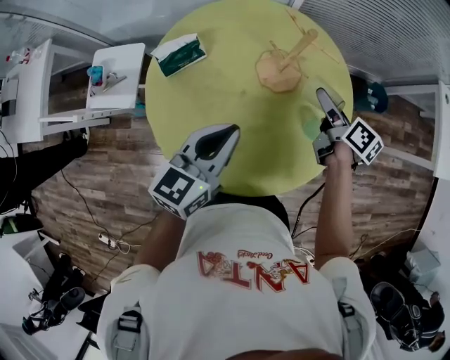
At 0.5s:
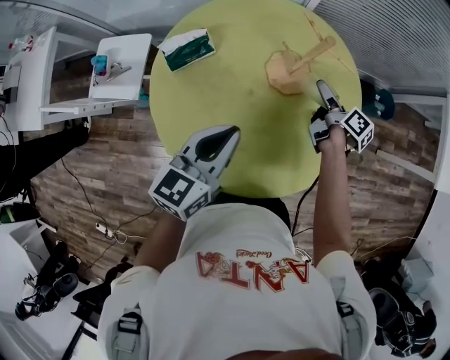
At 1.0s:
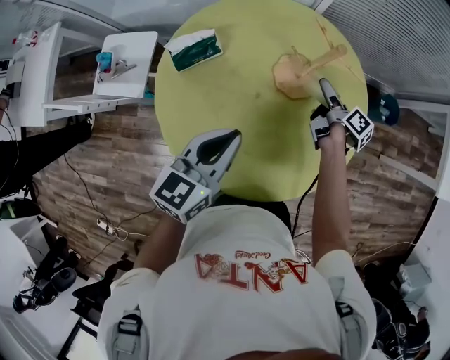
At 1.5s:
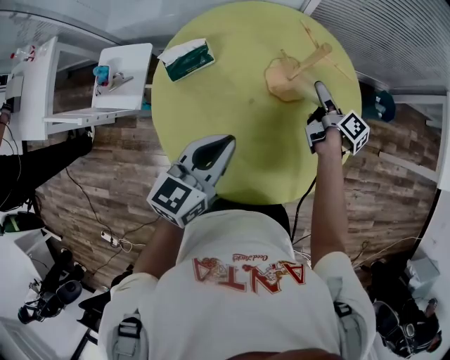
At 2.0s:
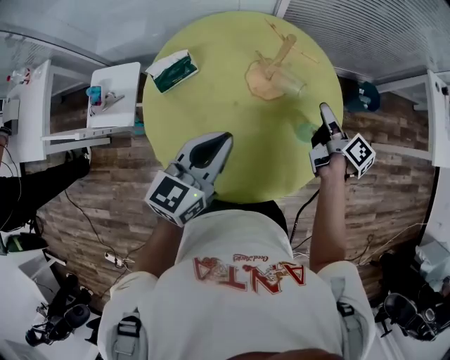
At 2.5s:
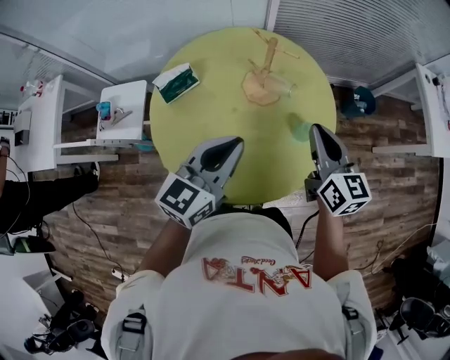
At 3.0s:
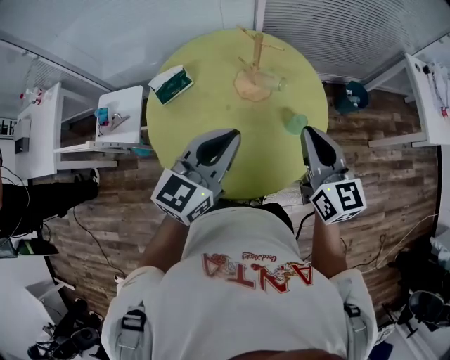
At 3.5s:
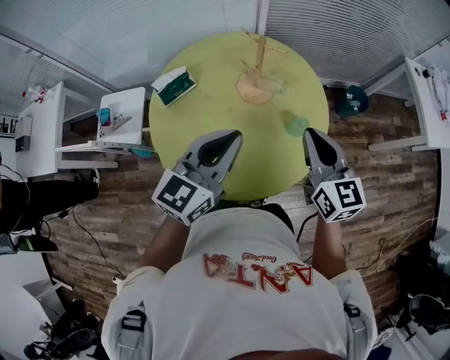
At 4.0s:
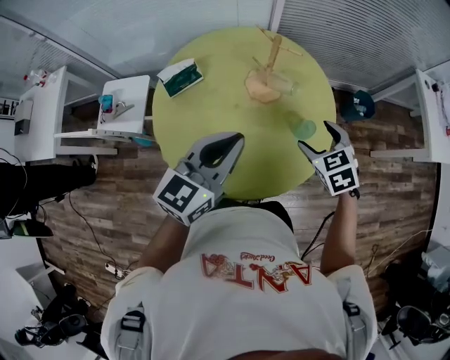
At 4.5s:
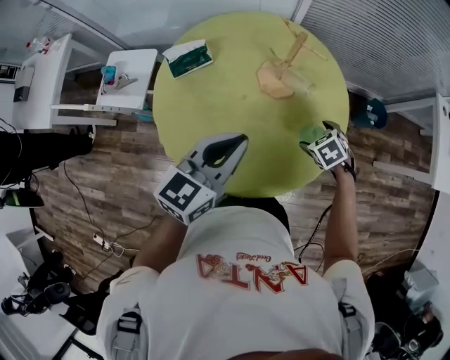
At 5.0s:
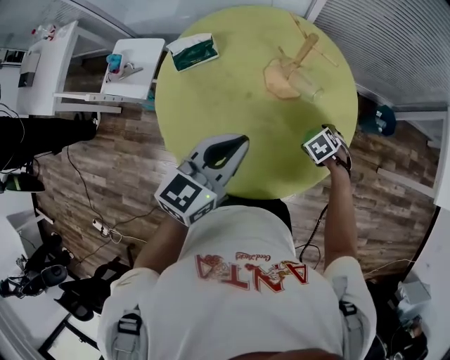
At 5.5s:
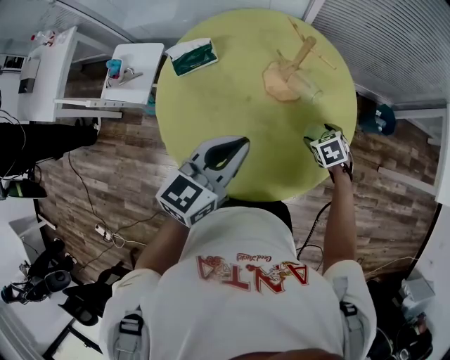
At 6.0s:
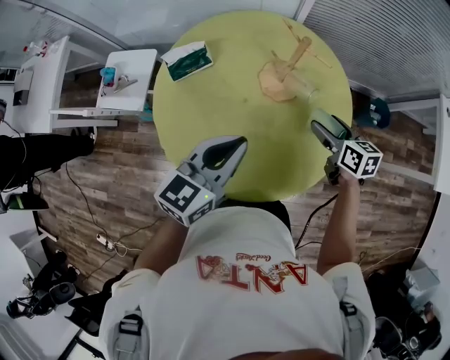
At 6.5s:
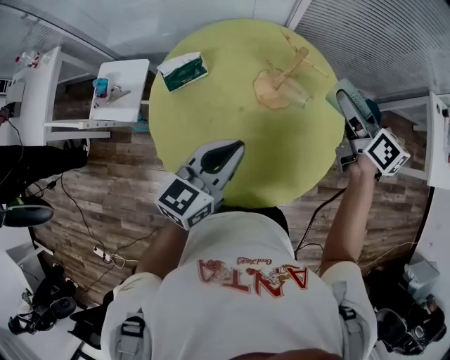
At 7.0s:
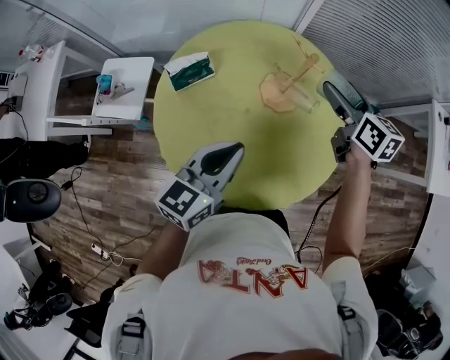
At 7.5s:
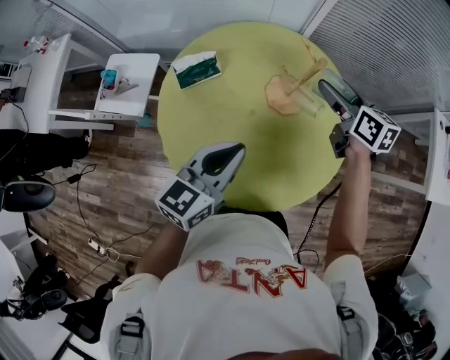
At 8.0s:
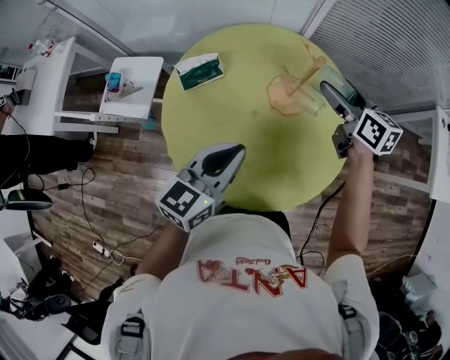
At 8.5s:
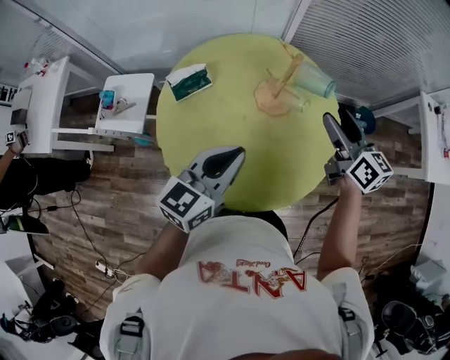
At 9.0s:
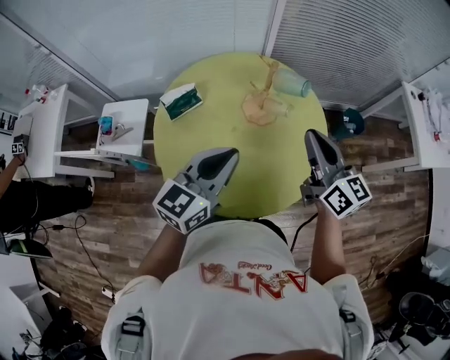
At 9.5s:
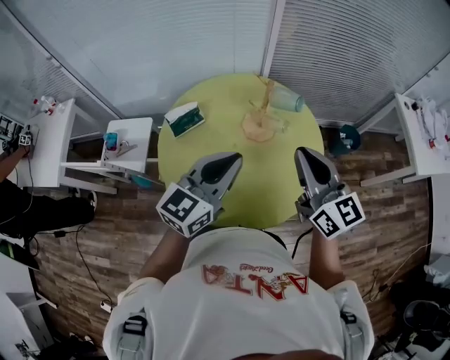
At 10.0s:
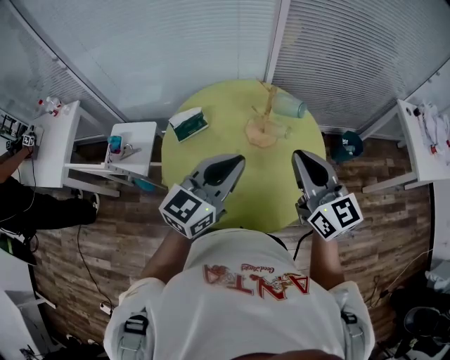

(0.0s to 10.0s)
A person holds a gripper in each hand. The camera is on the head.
0.0s - 2.0s: The right gripper goes downward and returns, approximately 10 cm each way.
2.0s - 4.0s: The left gripper goes roughly 5 cm upward. Meanwhile the right gripper heads backward, covering some 10 cm, travels upward and back again, about 20 cm each way, twists roughly 80 degrees counterclockwise, seen from behind, and closes, then opens again.
4.0s - 6.0s: The left gripper is displaced downward by approximately 5 cm, while the right gripper reaches about 25 cm downward, then returns, and swivels some 40 degrees.
6.0s - 8.0s: The right gripper heads upward, forward and to the left, covering about 20 cm.
8.0s - 10.0s: The right gripper is displaced backward and upward by some 25 cm, changes its angle by about 30 degrees, and closes. Meanwhile the left gripper heads upward, covering roughly 10 cm.

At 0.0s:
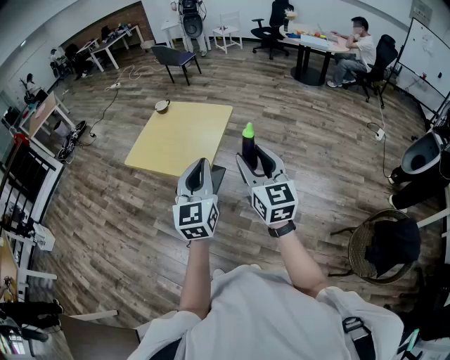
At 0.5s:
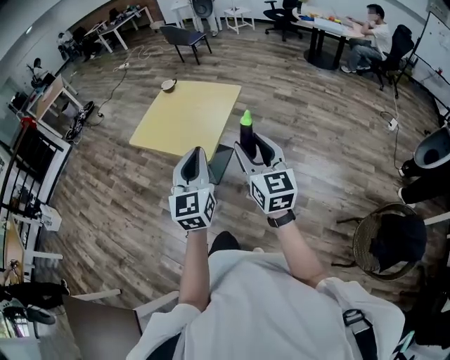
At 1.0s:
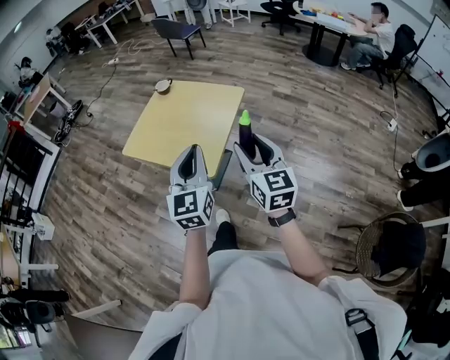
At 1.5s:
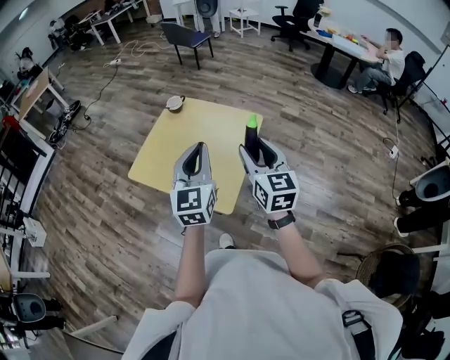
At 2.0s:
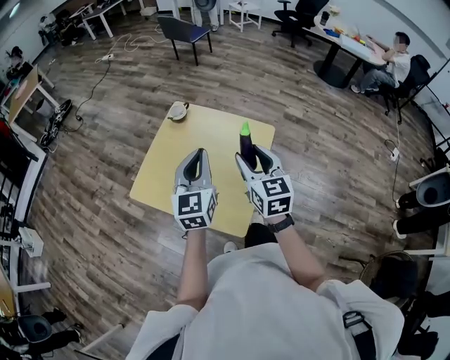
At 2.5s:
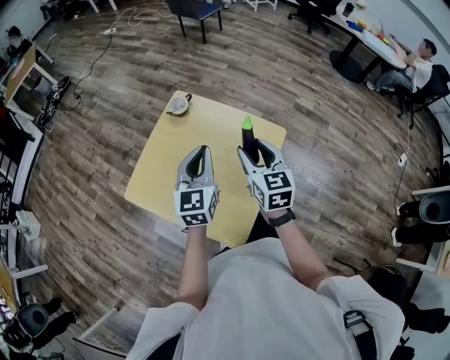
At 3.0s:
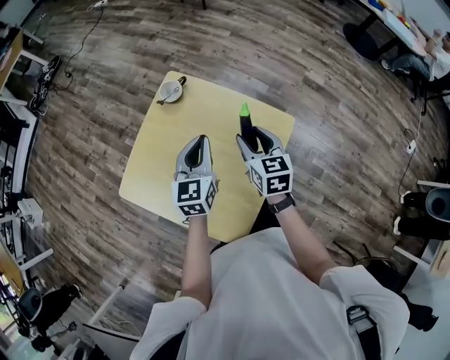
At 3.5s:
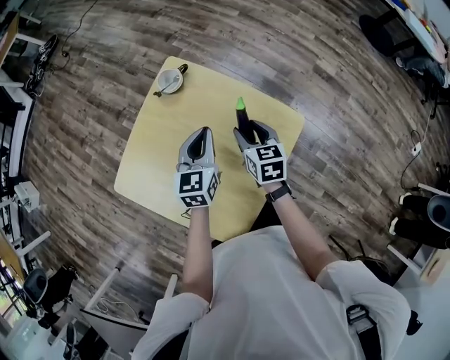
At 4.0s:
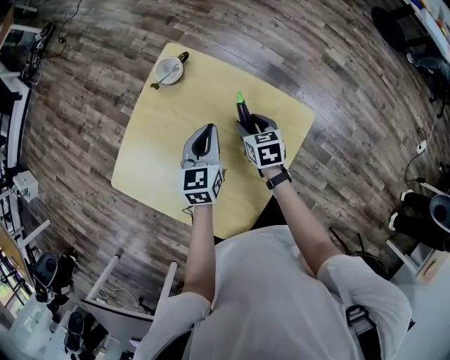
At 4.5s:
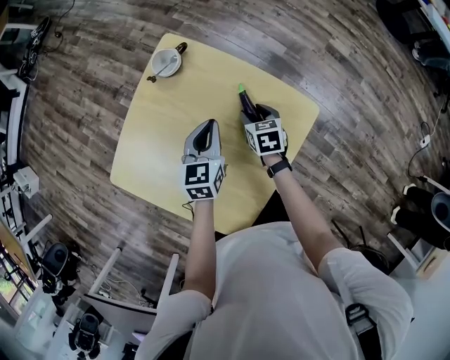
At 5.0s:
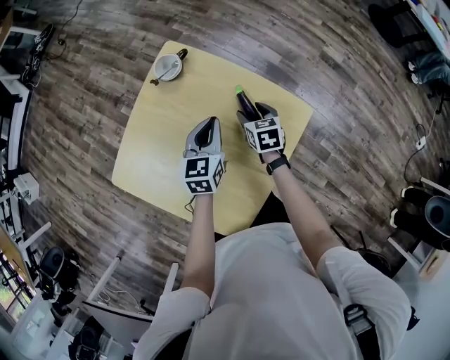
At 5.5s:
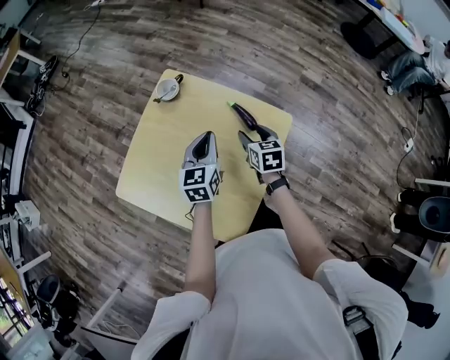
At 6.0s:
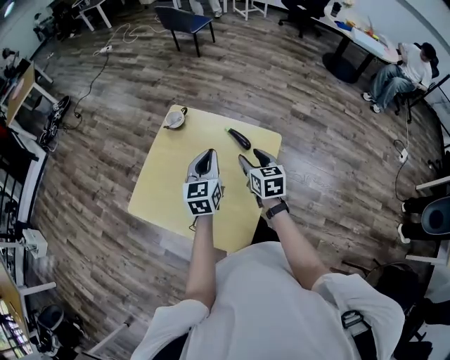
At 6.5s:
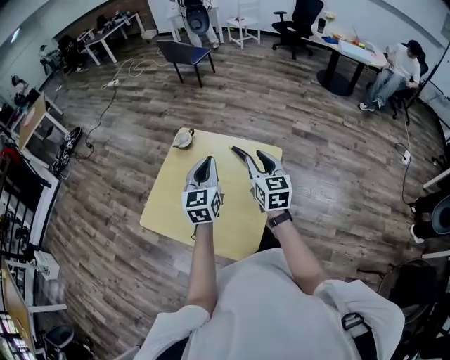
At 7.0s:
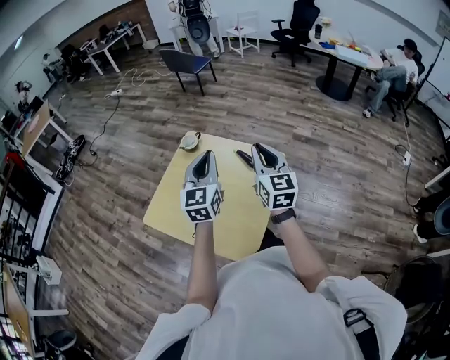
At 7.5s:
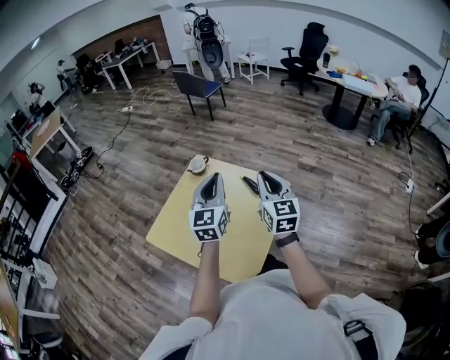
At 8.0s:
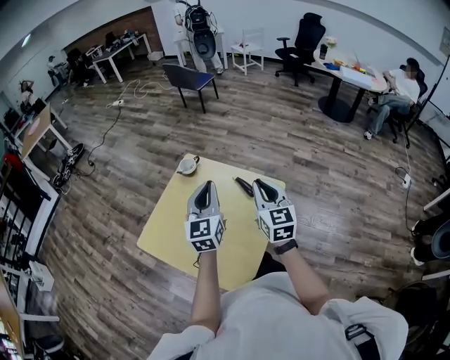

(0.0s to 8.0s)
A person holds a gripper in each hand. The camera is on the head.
0.0s - 2.0s: The two grippers travel together, forward, some 50 cm.
2.0s - 4.0s: The grippers both shift downward and forward by about 40 cm. The right gripper angles its fingers downward, by approximately 30 degrees. Meanwhile the left gripper changes its angle by about 30 degrees.
4.0s - 6.0s: Both grippers move upward and backward, roughly 20 cm. The right gripper swivels about 20 degrees.
6.0s - 8.0s: The two grippers go approximately 15 cm upward. The right gripper rotates about 30 degrees, and closes its fingers.

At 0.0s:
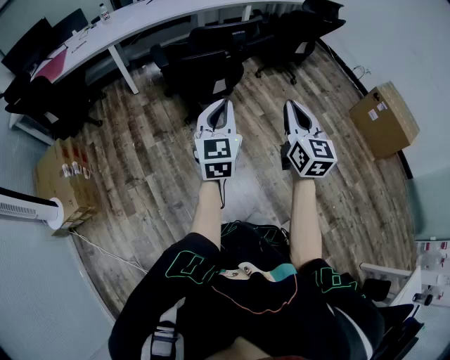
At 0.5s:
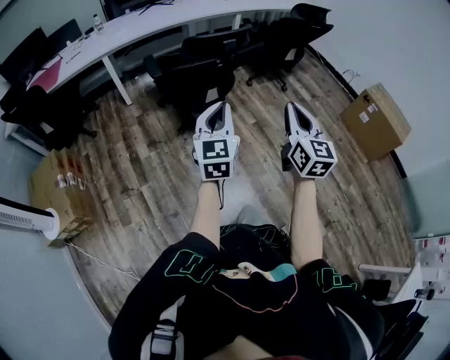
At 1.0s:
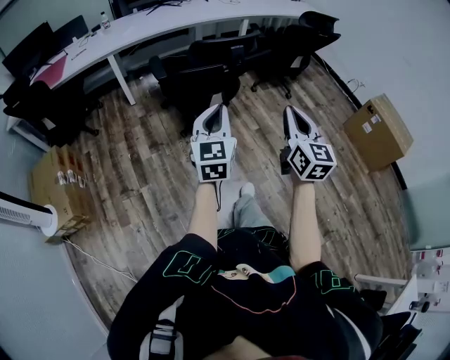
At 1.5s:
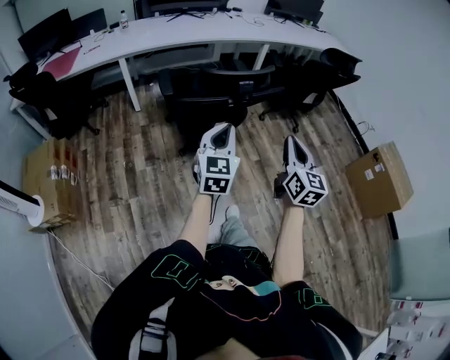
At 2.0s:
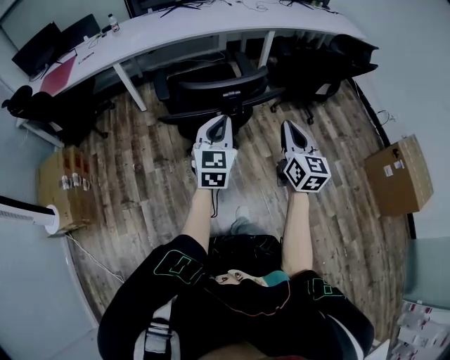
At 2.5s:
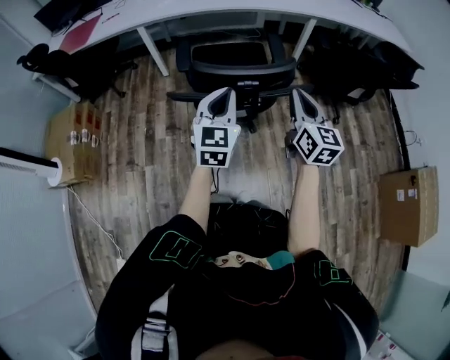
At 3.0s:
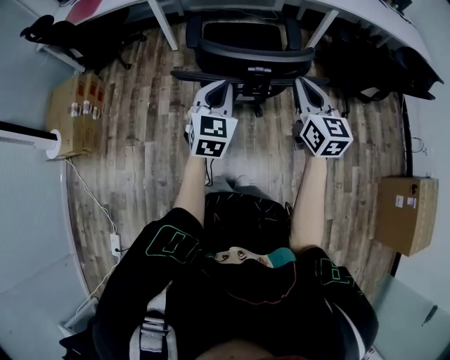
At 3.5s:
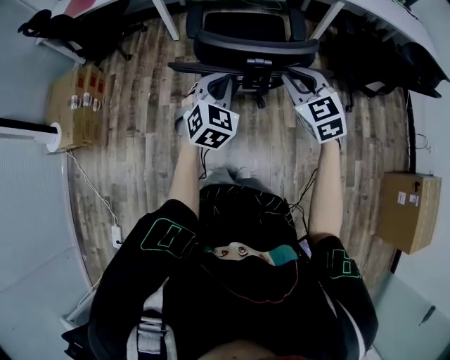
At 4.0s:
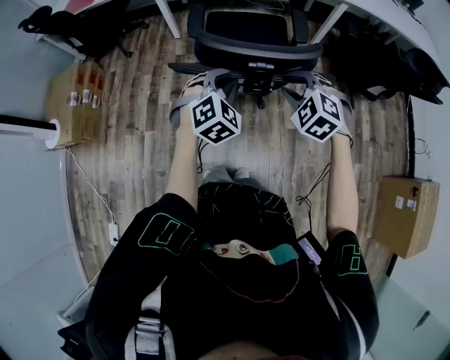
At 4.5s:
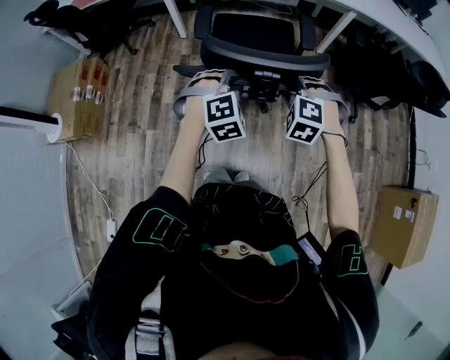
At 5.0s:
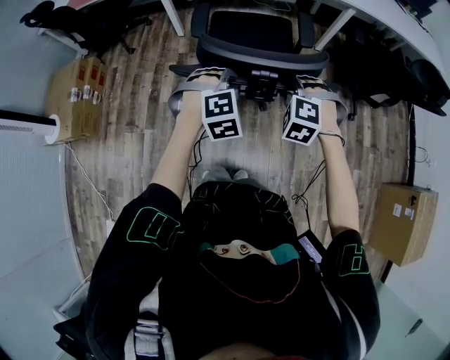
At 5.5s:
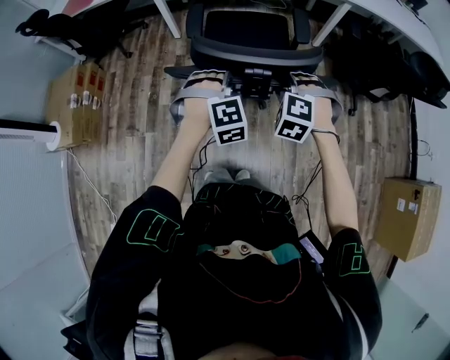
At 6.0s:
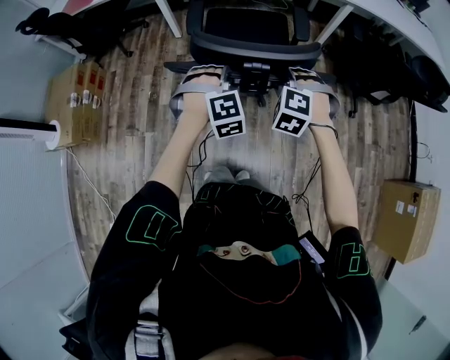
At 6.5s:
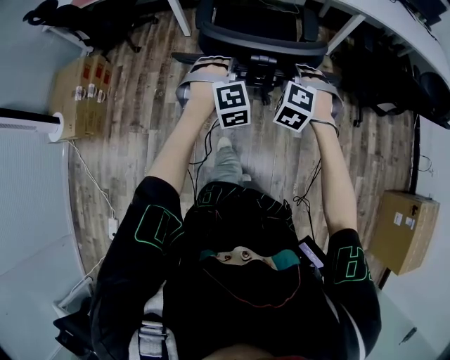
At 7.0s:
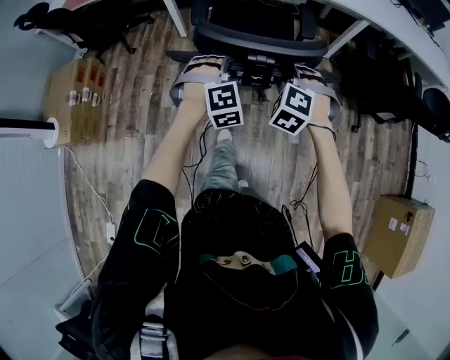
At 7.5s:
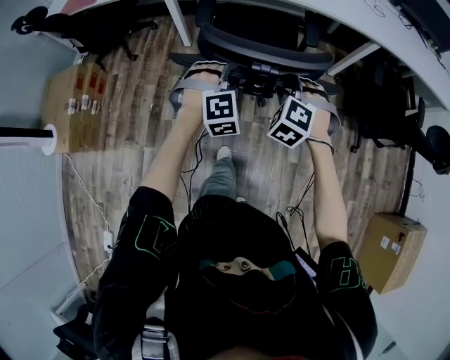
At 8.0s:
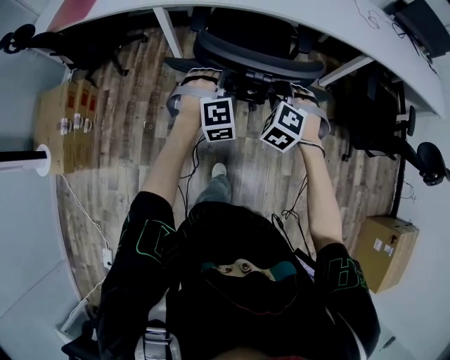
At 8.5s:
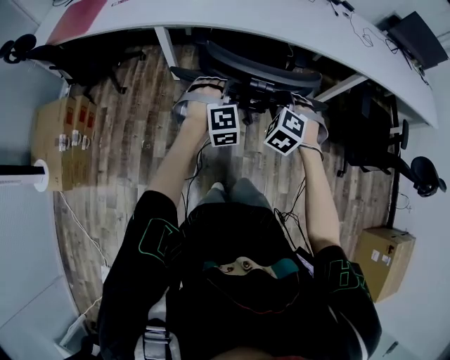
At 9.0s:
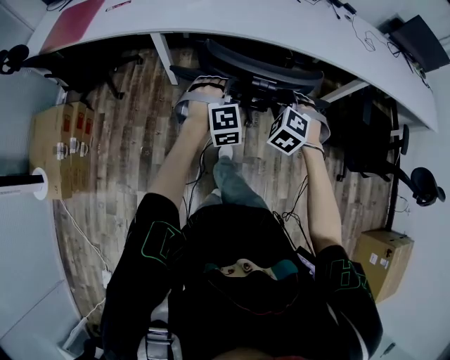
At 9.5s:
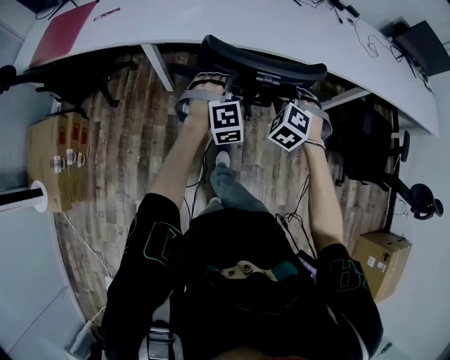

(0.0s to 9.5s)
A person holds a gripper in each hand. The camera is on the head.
0.0s - 2.0s: The two grippers go about 30 cm forward.
2.0s - 4.0s: The left gripper travels downward and forward by about 15 cm, tips its fingers downward by approximately 30 degrees, and opens up. The right gripper is displaced forward, downward and to the left by some 20 cm, tilts its fingers about 40 degrees downward, and opens up.
4.0s - 5.5s: The right gripper moves roughly 5 cm. The left gripper turns by some 30 degrees.
5.5s - 7.5s: Both grippers travel together forward, roughly 25 cm.
7.5s - 9.5s: Both grippers move forward, approximately 30 cm.
